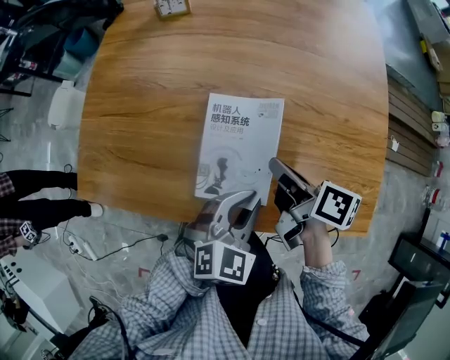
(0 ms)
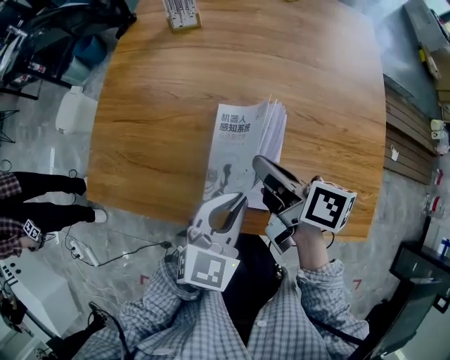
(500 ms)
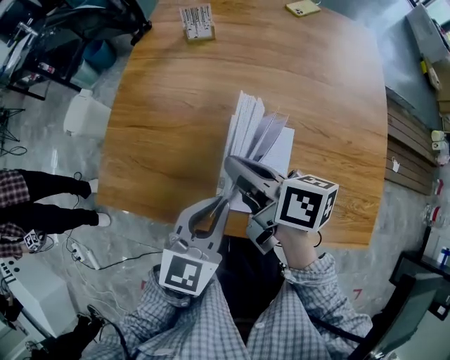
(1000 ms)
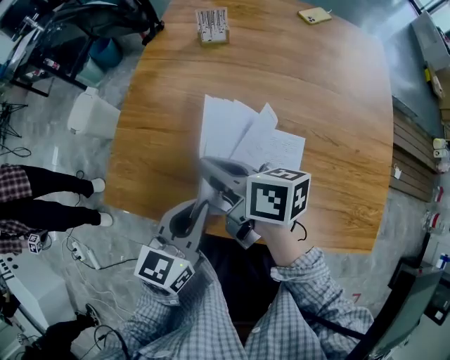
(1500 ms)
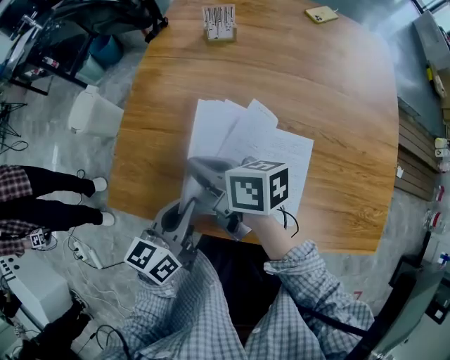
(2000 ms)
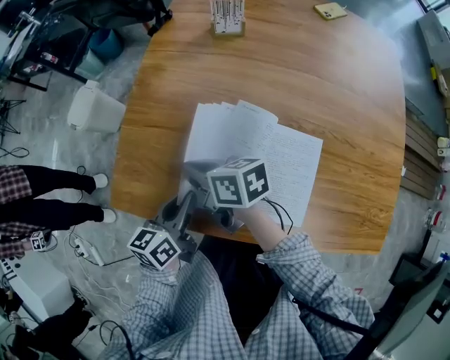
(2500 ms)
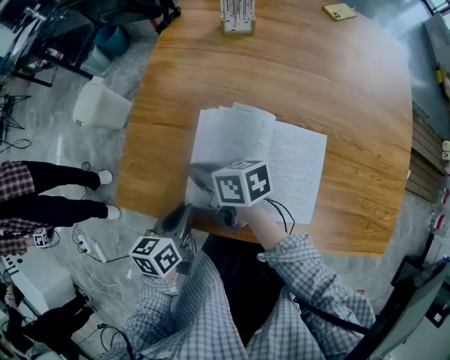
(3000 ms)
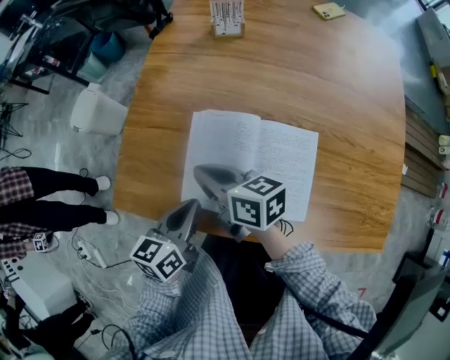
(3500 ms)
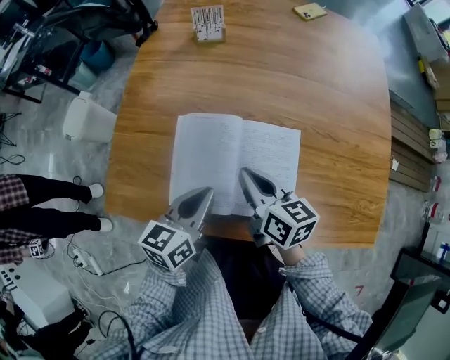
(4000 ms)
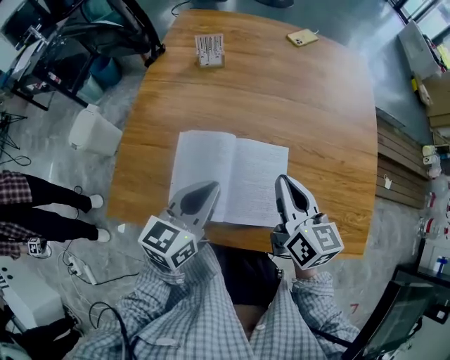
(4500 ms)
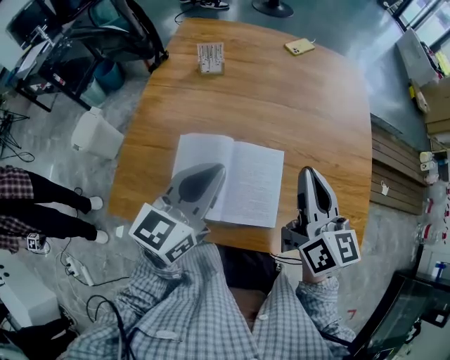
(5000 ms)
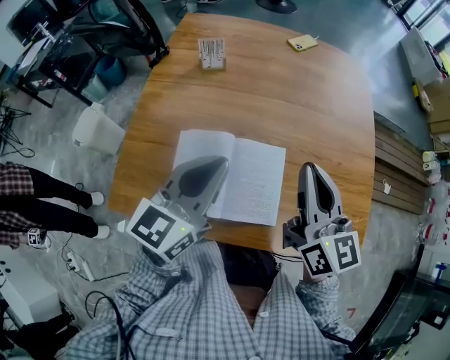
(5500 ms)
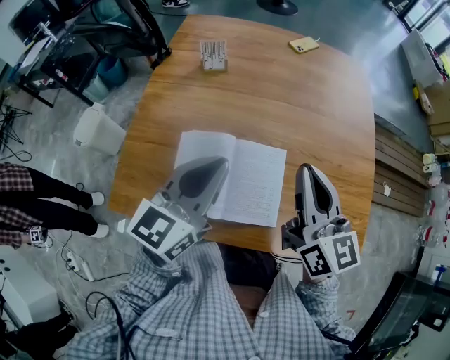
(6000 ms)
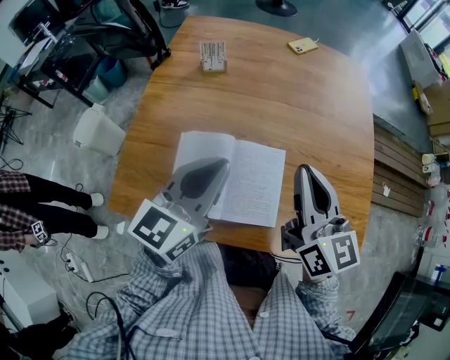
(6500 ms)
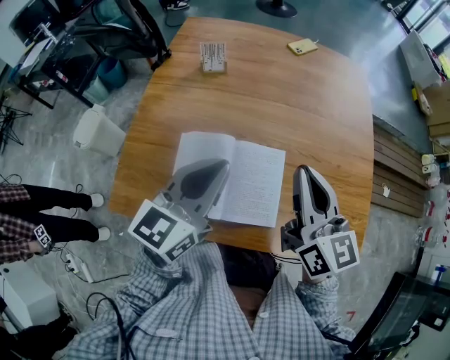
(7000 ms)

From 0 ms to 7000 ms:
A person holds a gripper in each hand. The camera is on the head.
From 0 ms to 2000 ms: Both grippers move to the left, some 25 cm. The right gripper swivels about 30 degrees. The left gripper rotates around the line of its fingers by roughly 50 degrees, counterclockwise from behind.
From 3500 ms to 5000 ms: The right gripper ends up some 35 cm from where it was, and changes its angle by about 50 degrees; the left gripper shifts about 20 cm upward, and swivels roughly 30 degrees.
From 5000 ms to 7000 ms: The grippers make only small movements.

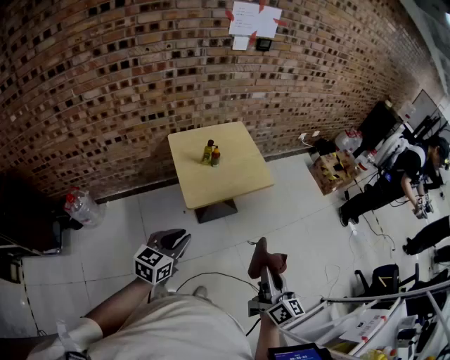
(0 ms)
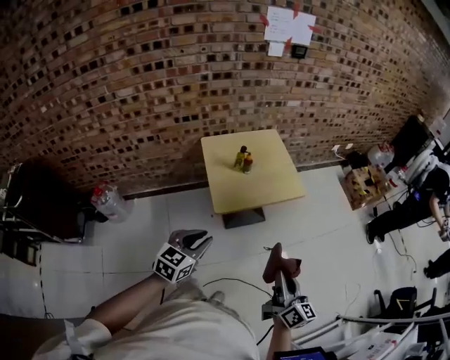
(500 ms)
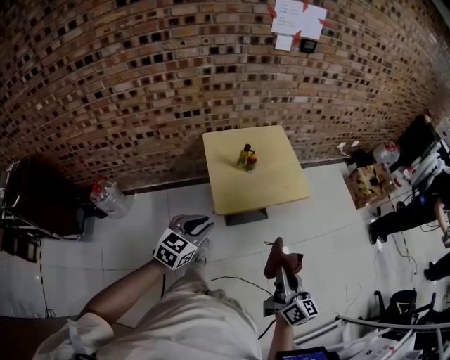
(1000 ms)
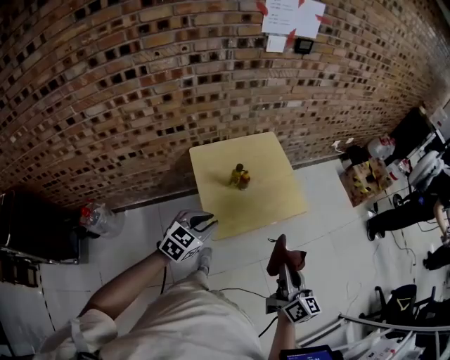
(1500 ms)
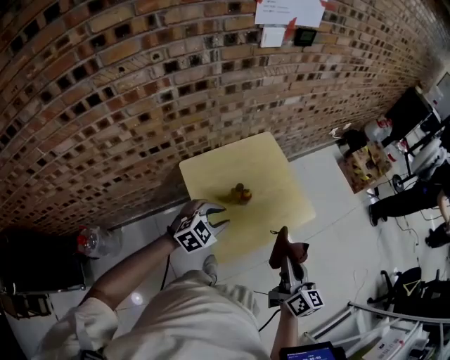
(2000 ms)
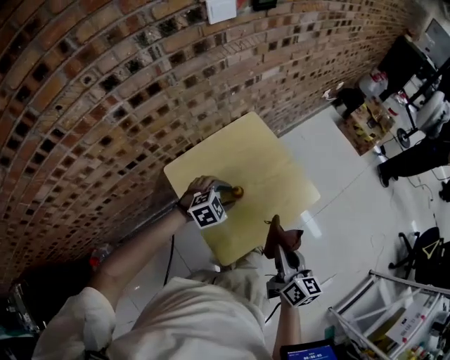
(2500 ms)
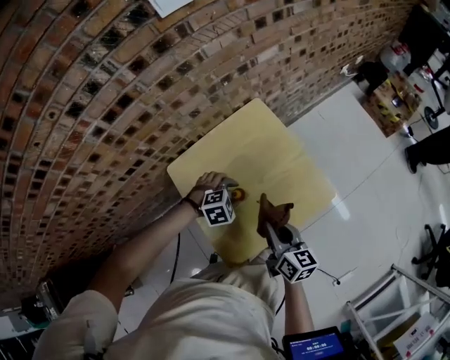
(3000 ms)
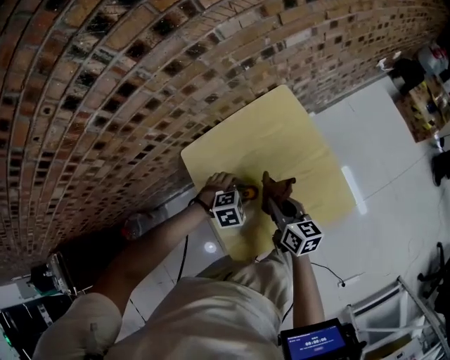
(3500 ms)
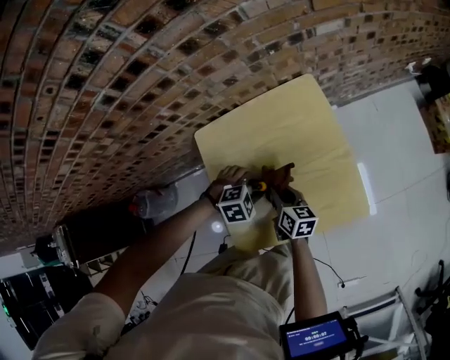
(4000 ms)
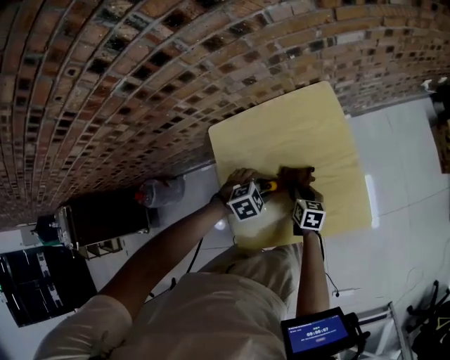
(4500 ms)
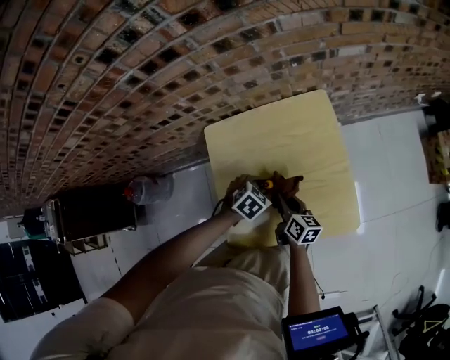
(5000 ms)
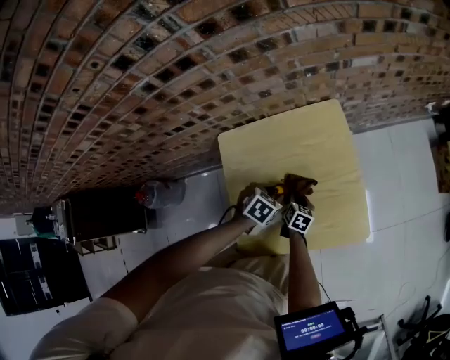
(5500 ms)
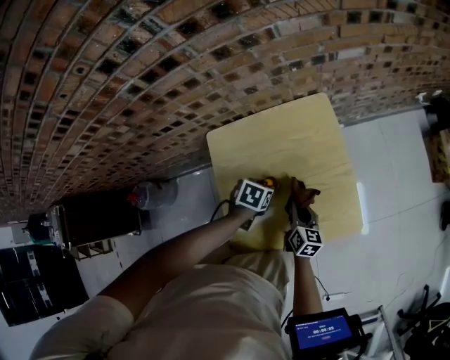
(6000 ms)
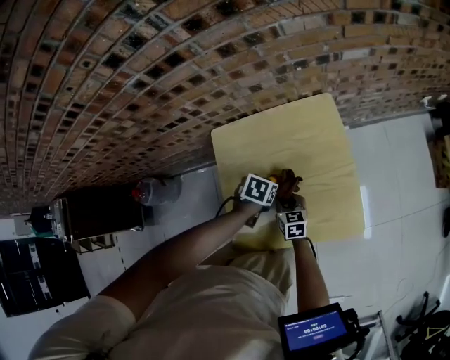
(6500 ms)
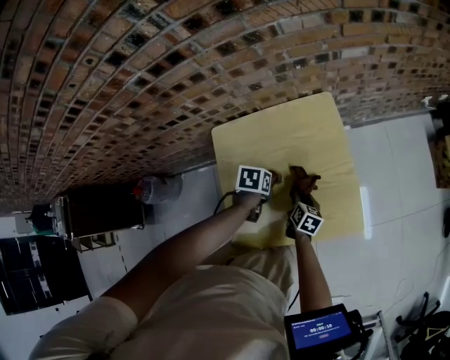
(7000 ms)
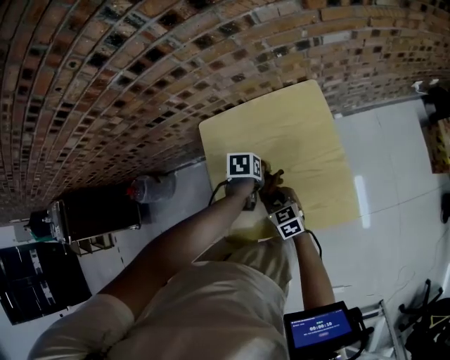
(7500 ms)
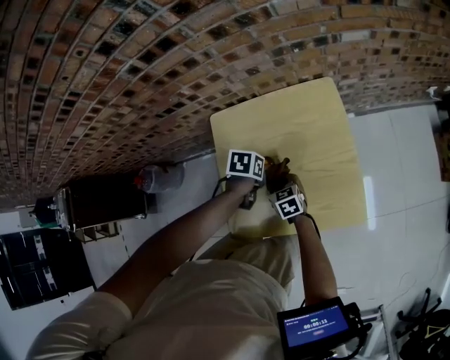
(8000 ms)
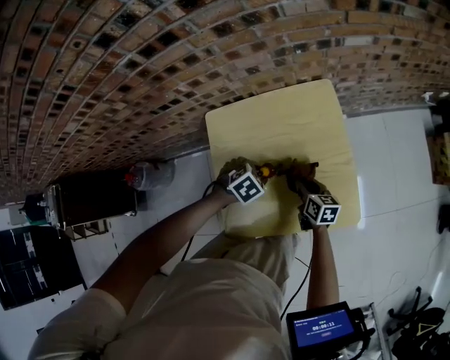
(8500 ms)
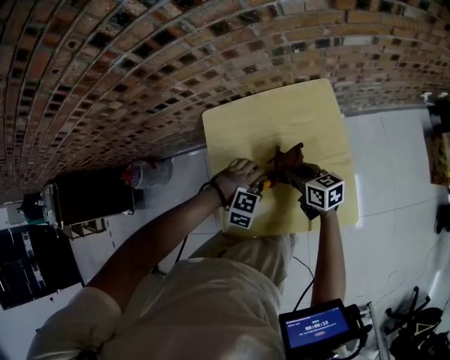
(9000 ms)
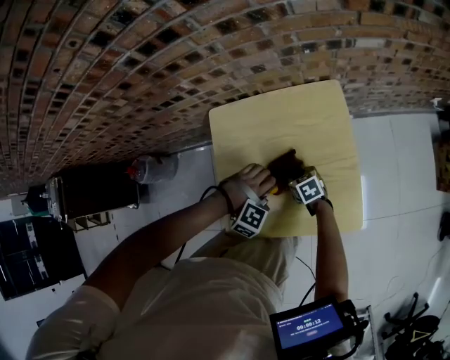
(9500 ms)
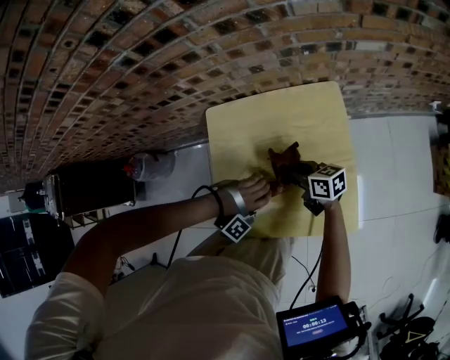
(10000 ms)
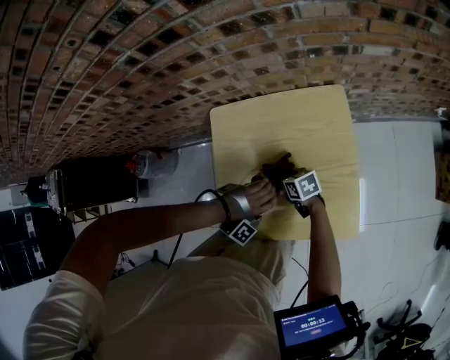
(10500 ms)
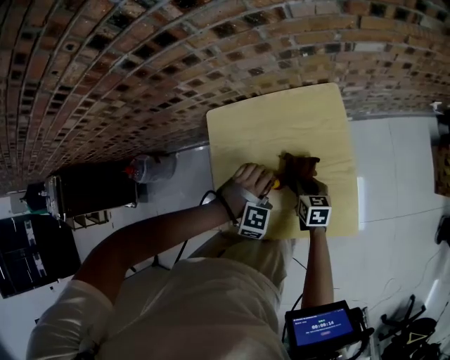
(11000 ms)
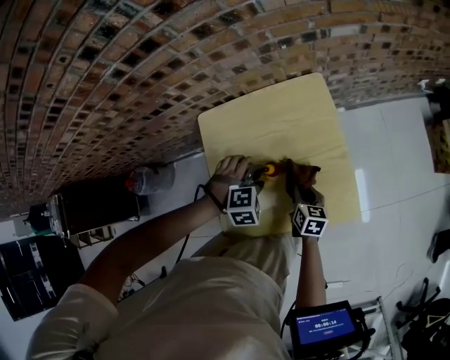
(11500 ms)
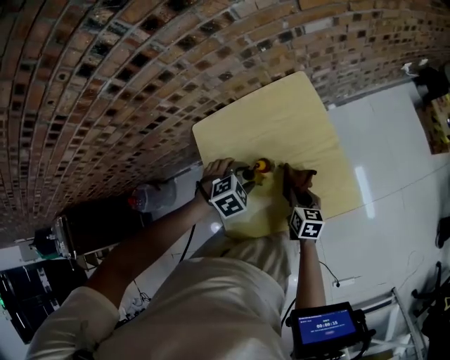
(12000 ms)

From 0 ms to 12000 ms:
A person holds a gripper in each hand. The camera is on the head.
From 0 ms to 2000 ms: The left gripper moves forward, some 40 cm, and turns by approximately 50 degrees; the right gripper shifts approximately 40 cm forward and to the left.
From 2000 ms to 4000 ms: Both grippers move downward, approximately 25 cm. The left gripper tilts its fingers approximately 30 degrees downward. The right gripper turns by about 30 degrees.
From 4000 ms to 6000 ms: The right gripper goes up and down, approximately 10 cm each way, reversing 3 times. The left gripper rolls counterclockwise, seen from behind, by some 60 degrees.
From 6000 ms to 8000 ms: The right gripper swings up and down, approximately 10 cm each way, with 2 reversals, and turns by some 50 degrees. Meanwhile the left gripper rotates some 20 degrees.
From 8000 ms to 10000 ms: The right gripper moves up and down over approximately 15 cm, changing direction 2 times, and changes its angle by roughly 30 degrees. Meanwhile the left gripper ends up approximately 10 cm from where it was, and twists about 150 degrees clockwise, seen from behind.
From 10000 ms to 12000 ms: The right gripper changes place by some 15 cm, and rotates approximately 50 degrees, while the left gripper changes place by roughly 5 cm, and rolls counterclockwise, seen from behind, by some 80 degrees.

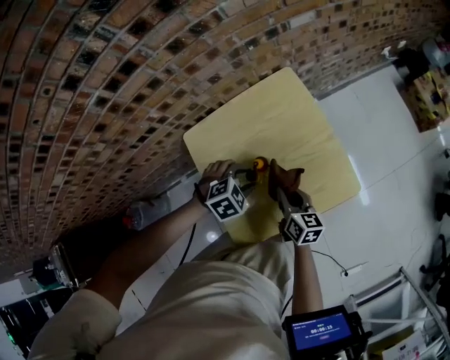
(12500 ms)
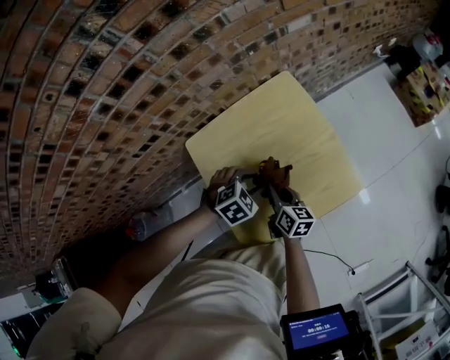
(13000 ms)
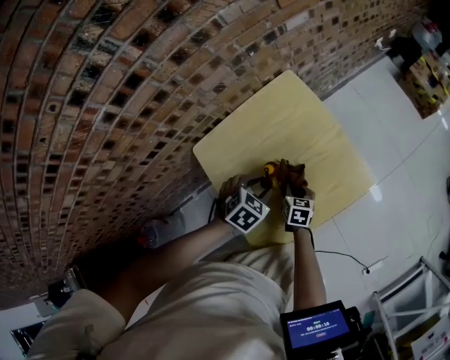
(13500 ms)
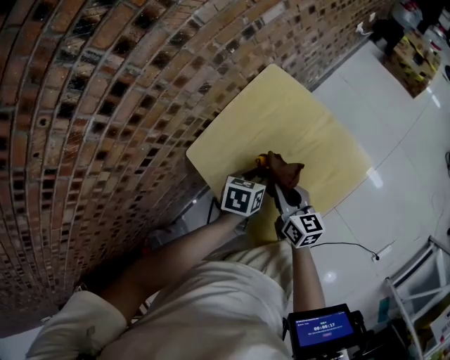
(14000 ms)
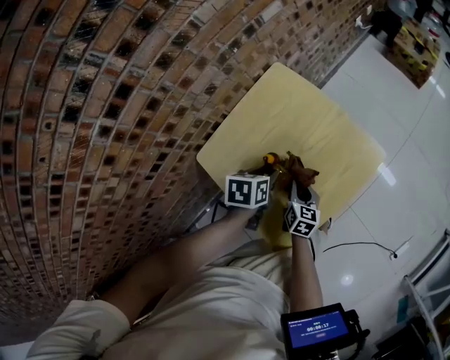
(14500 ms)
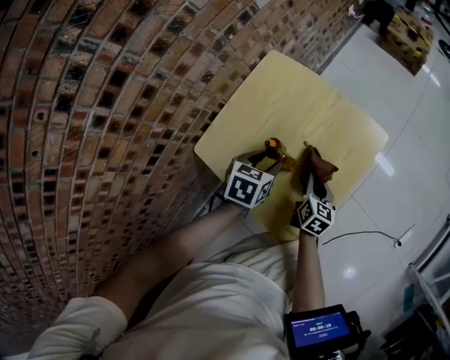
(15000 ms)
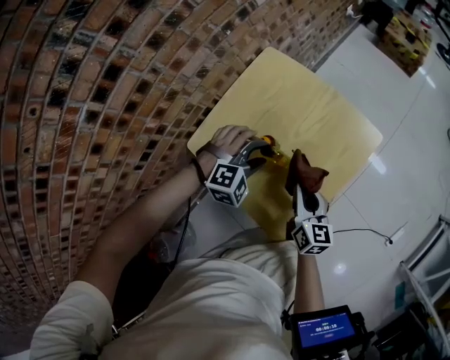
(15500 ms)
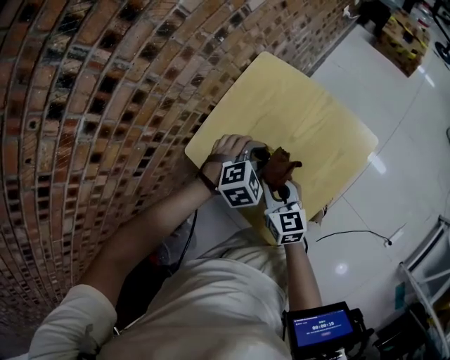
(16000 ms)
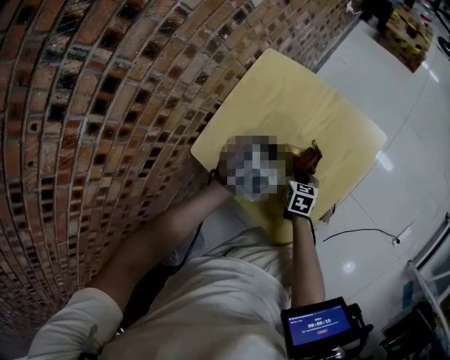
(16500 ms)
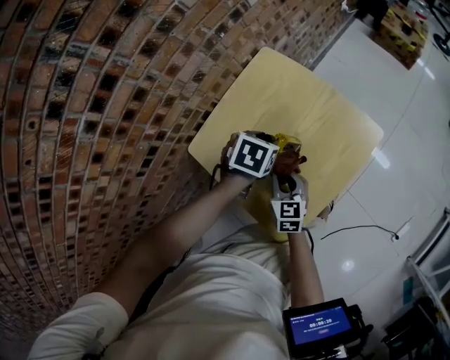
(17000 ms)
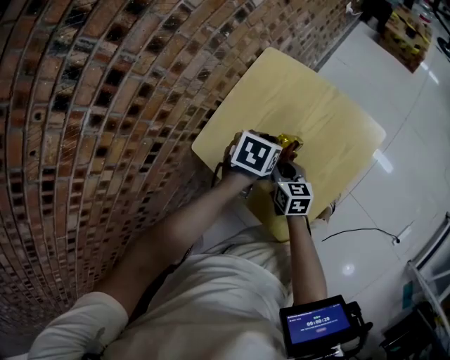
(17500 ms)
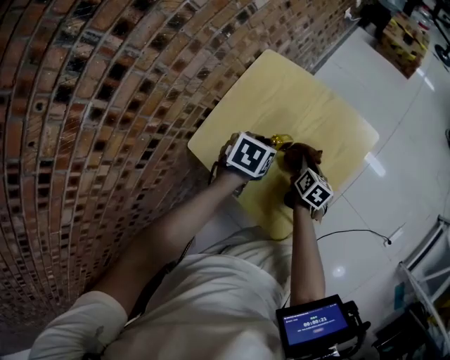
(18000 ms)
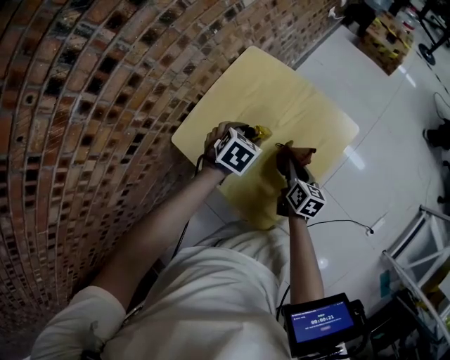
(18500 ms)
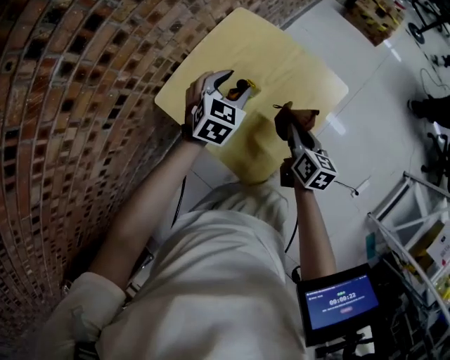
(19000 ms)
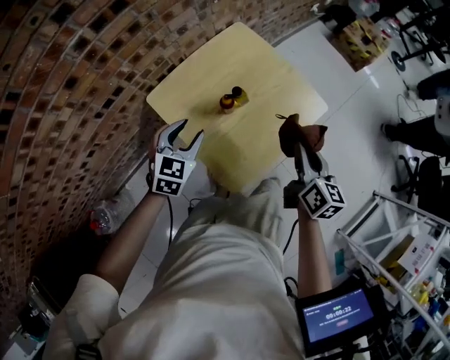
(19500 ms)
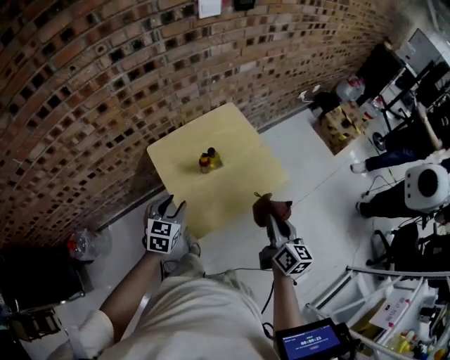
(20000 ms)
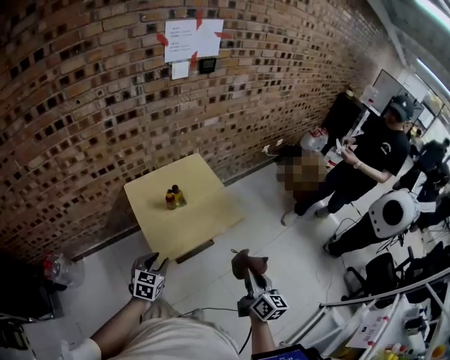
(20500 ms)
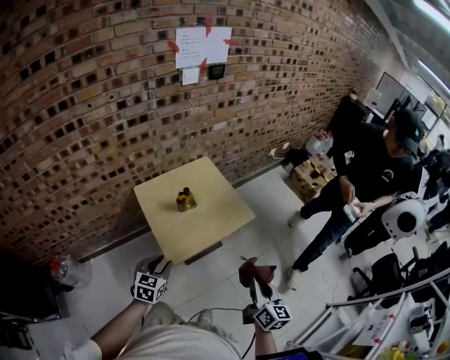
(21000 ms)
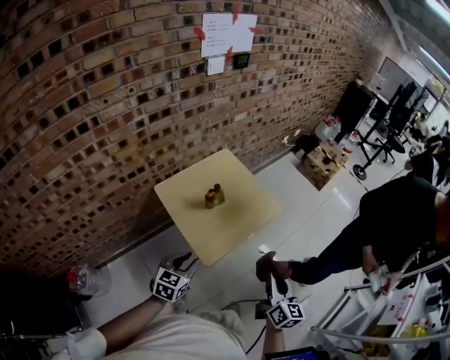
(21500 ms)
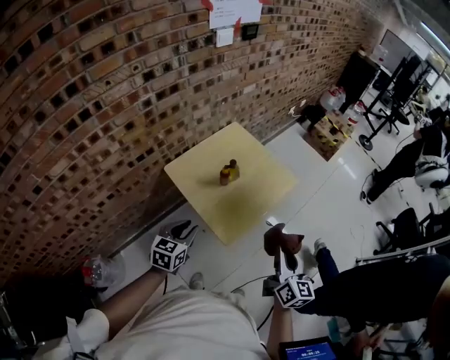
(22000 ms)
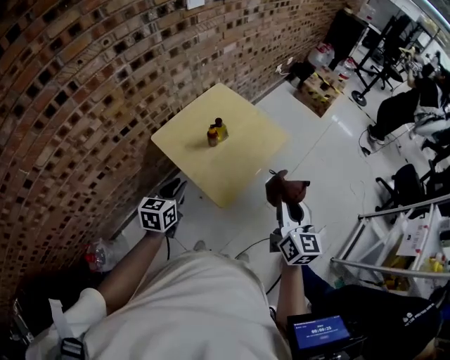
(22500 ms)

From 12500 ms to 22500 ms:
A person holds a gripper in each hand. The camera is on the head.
From 12500 ms to 14500 ms: The left gripper twists some 50 degrees counterclockwise, seen from behind; the right gripper goes up and down, some 15 cm each way, reversing 2 times, and swivels approximately 30 degrees.
From 14500 ms to 16500 ms: The left gripper twists about 50 degrees clockwise, seen from behind. The right gripper reaches approximately 10 cm upward, then returns.
From 16500 ms to 18500 ms: The right gripper travels upward and to the right by about 10 cm.
From 18500 ms to 20500 ms: The left gripper heads backward, covering about 35 cm, and rotates some 40 degrees, while the right gripper heads upward, backward and to the right, covering about 50 cm, and changes its angle by about 30 degrees.
From 20500 ms to 22500 ms: Both grippers move to the left, some 20 cm. The right gripper turns by about 20 degrees.
